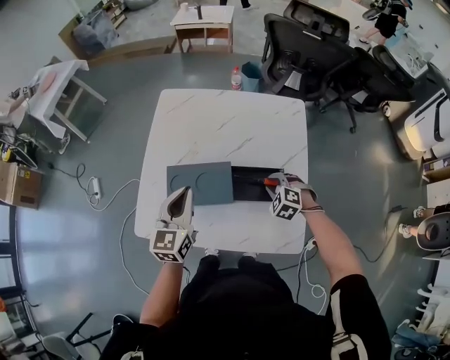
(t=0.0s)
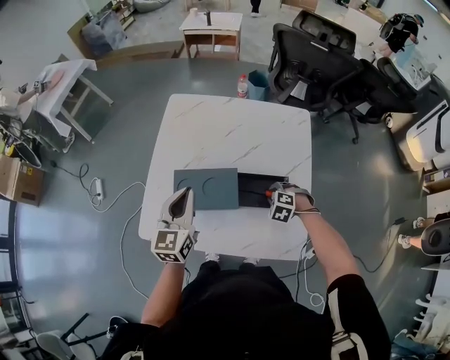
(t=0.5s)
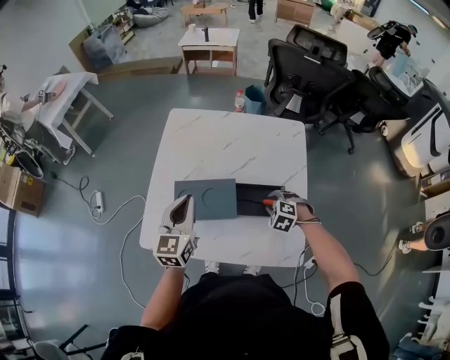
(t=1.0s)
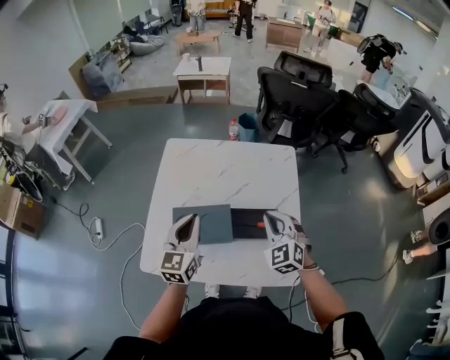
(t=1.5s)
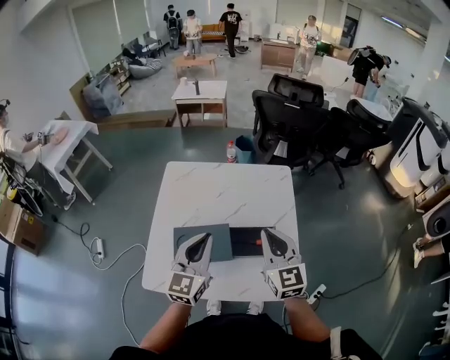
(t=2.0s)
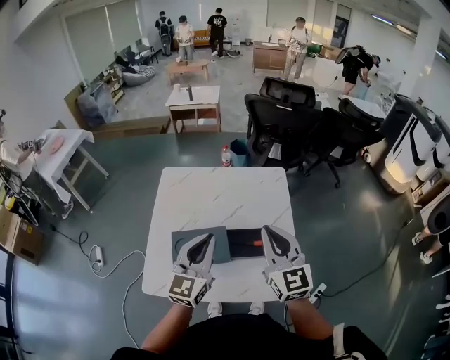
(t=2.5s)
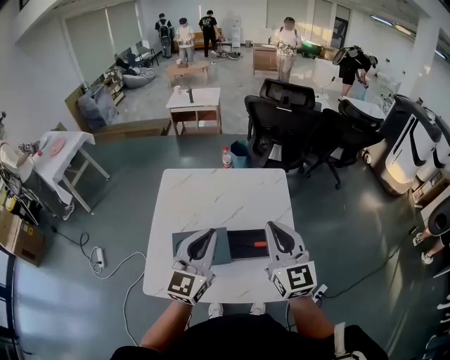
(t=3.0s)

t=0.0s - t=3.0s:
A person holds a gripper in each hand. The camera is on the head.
t=0.0s - t=1.5s: The right gripper moves upward, approximately 20 cm, tilts its fingers roughly 30 degrees upward, and closes.
t=1.5s - t=3.0s: The right gripper shifts about 15 cm upward, and changes its angle by about 40 degrees; the left gripper moves upward and to the right, about 10 cm.

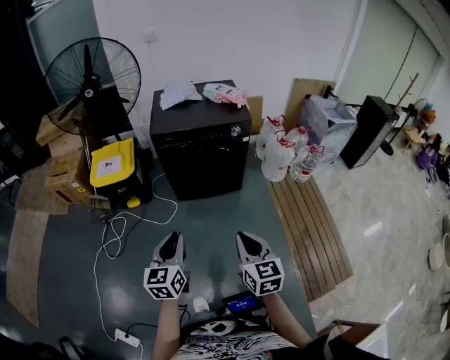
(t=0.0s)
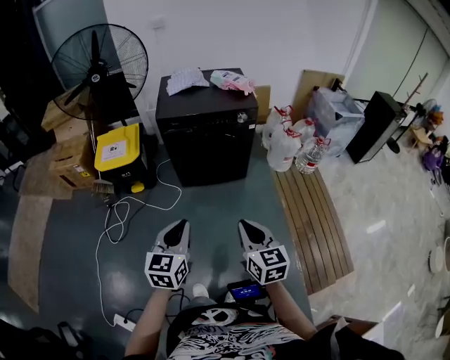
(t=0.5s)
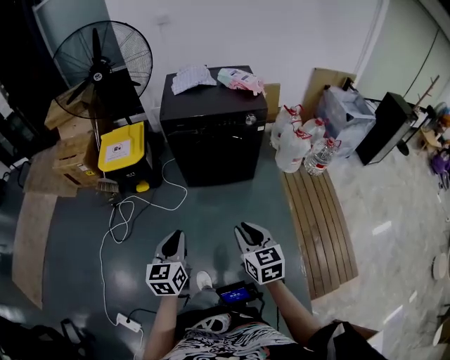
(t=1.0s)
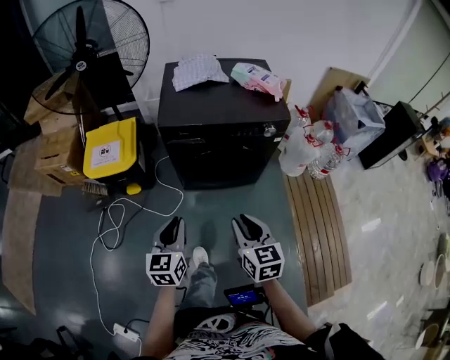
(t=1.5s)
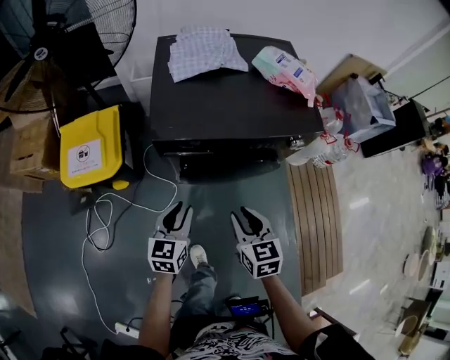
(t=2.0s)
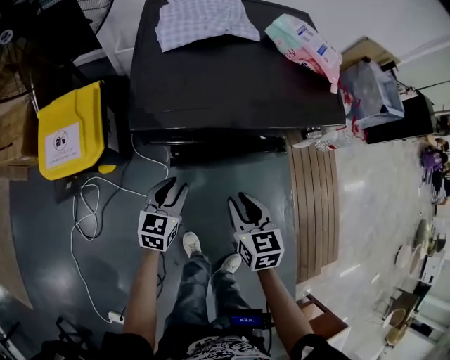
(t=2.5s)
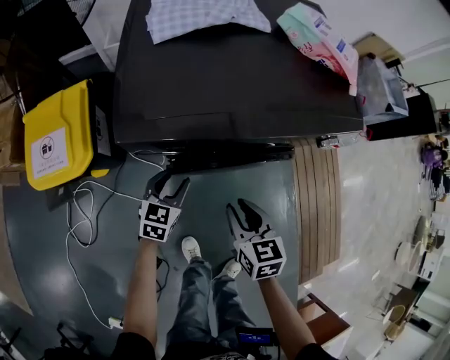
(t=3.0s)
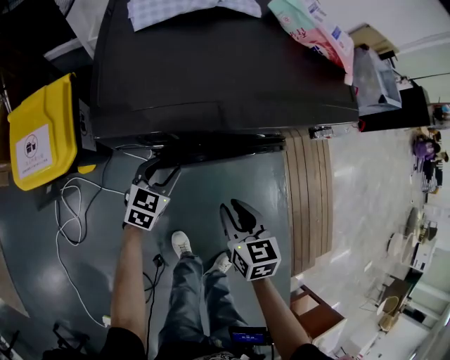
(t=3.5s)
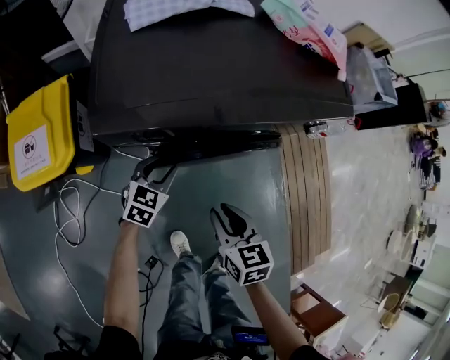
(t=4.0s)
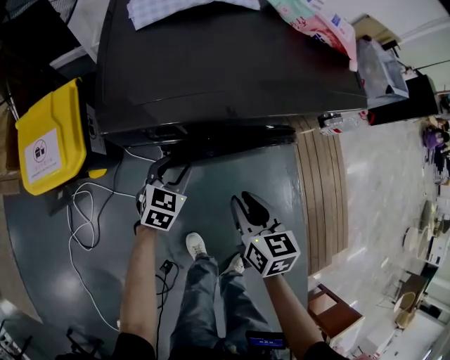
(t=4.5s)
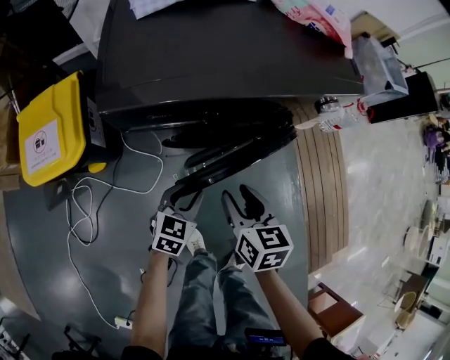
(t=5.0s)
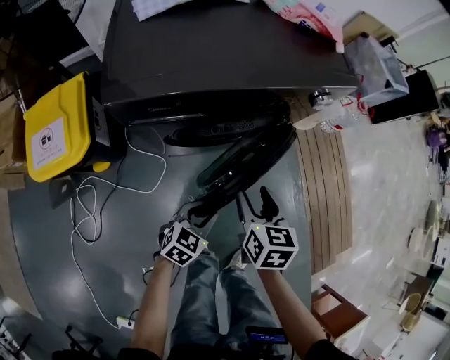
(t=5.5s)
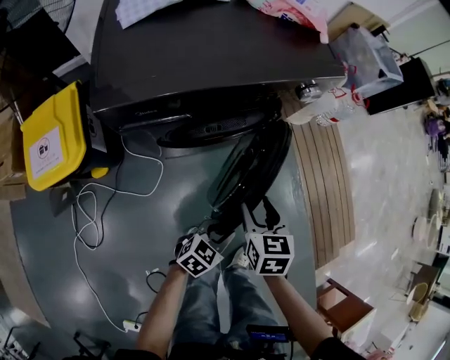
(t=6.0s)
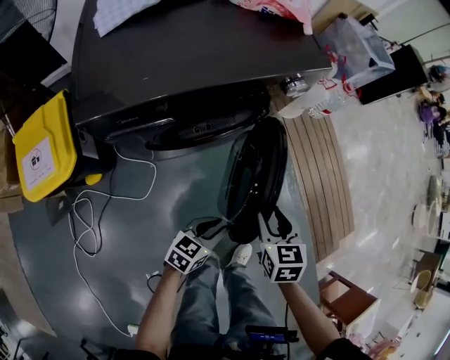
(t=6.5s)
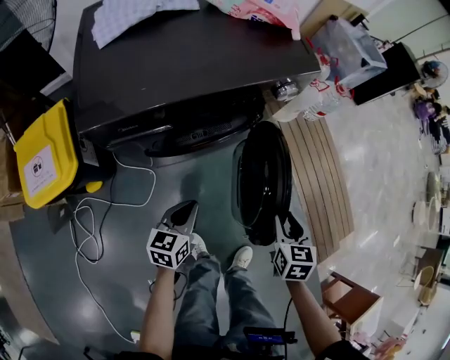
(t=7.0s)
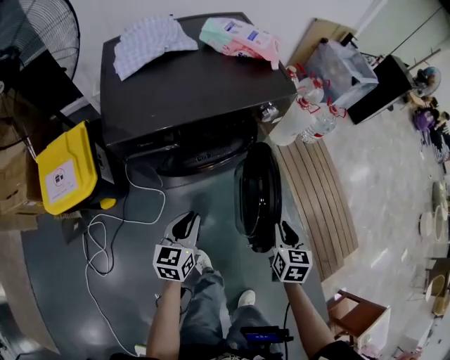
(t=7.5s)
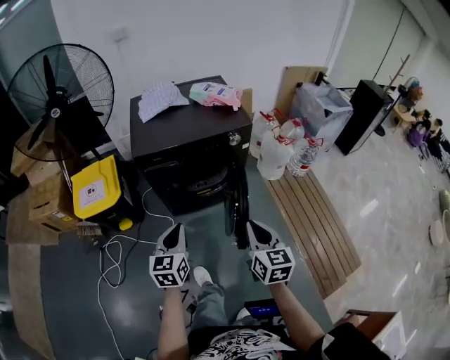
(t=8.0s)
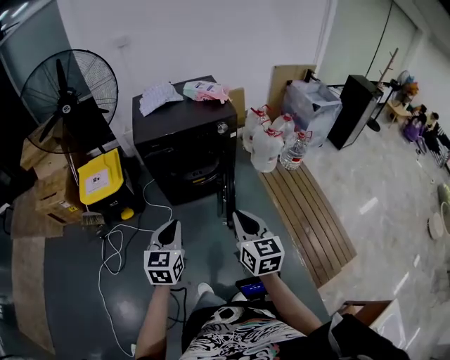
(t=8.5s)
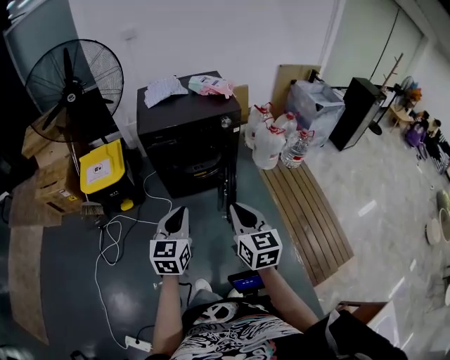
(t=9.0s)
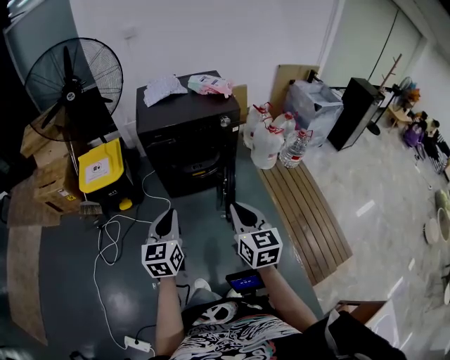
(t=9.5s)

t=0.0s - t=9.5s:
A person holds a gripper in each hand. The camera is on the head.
t=0.0s - t=2.0s: The pair of grippers is taken forward, about 40 cm. The right gripper opens its fingers. The left gripper moves downward, roughly 20 cm.
t=2.0s - t=4.0s: The right gripper is displaced downward by about 15 cm; the left gripper is displaced downward and forward by approximately 25 cm, and turns by about 30 degrees.
t=4.0s - t=5.5s: The left gripper moves backward and to the right, roughly 20 cm; the right gripper travels to the right by some 5 cm, and opens up.
t=5.5s - t=7.5s: The left gripper travels upward by about 10 cm, moves about 10 cm to the right and comes back, and turns by about 30 degrees. The right gripper moves to the right, approximately 20 cm, and closes its fingers.
t=7.5s - t=9.5s: The left gripper shifts approximately 40 cm backward and upward, and swivels approximately 20 degrees. The right gripper goes roughly 40 cm upward and backward, and turns by approximately 40 degrees.

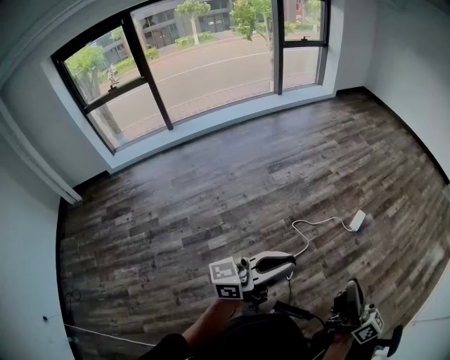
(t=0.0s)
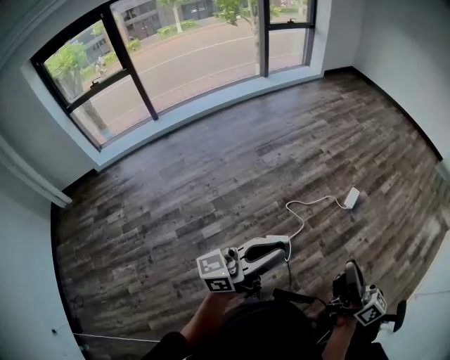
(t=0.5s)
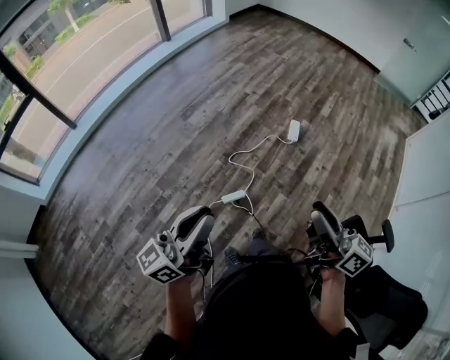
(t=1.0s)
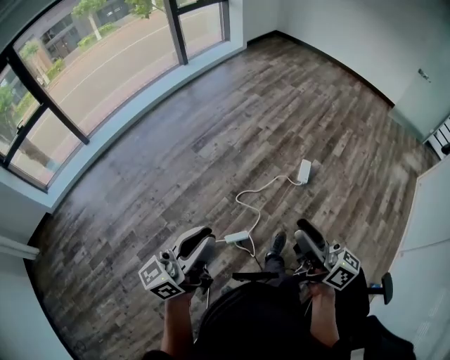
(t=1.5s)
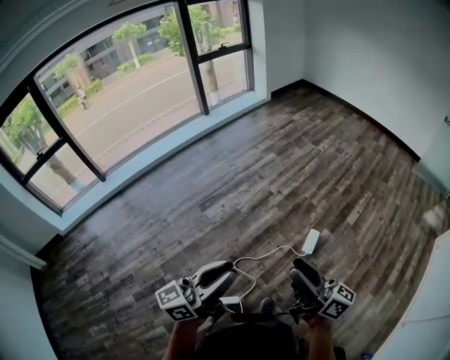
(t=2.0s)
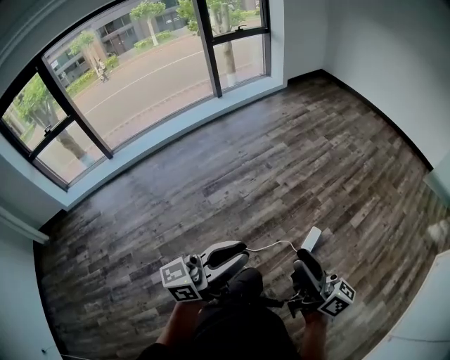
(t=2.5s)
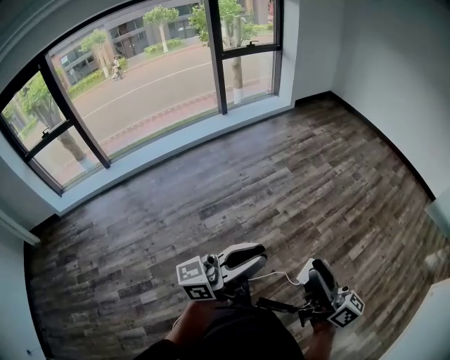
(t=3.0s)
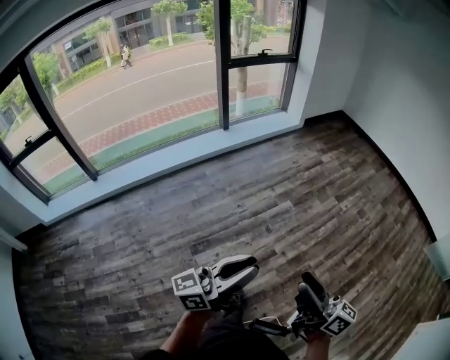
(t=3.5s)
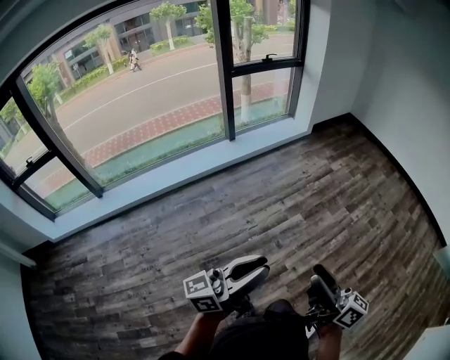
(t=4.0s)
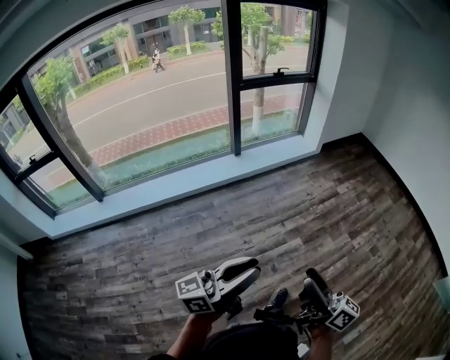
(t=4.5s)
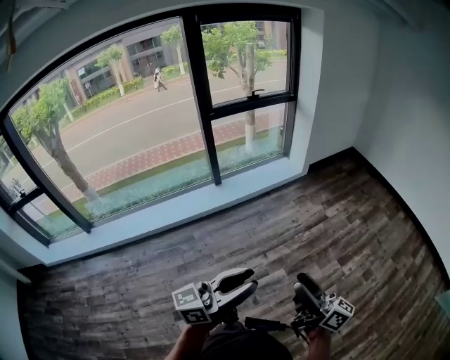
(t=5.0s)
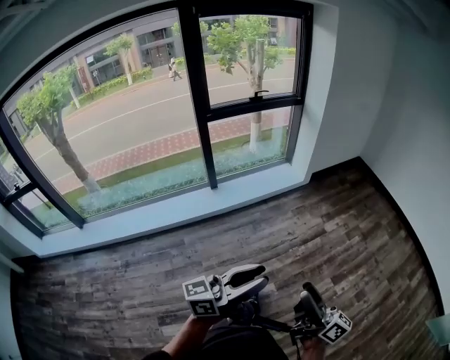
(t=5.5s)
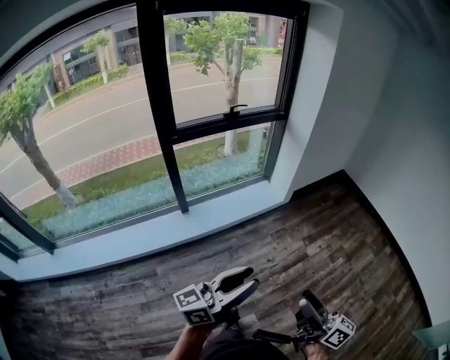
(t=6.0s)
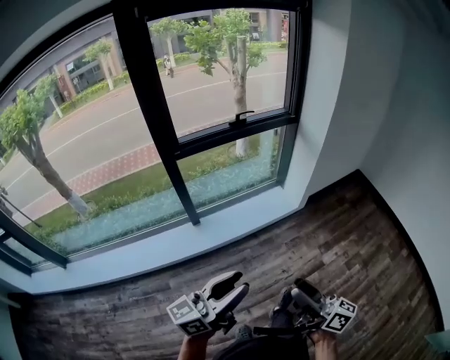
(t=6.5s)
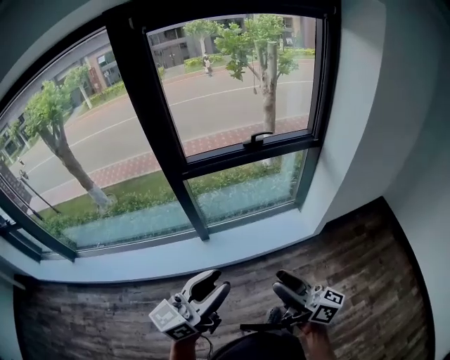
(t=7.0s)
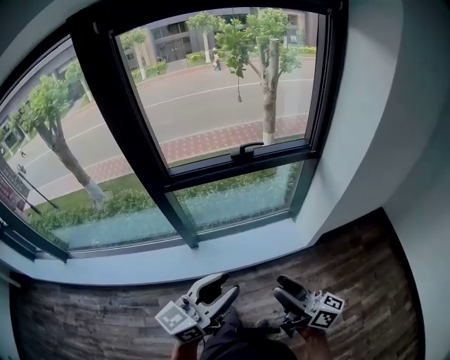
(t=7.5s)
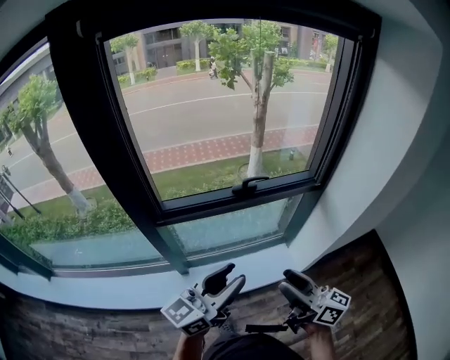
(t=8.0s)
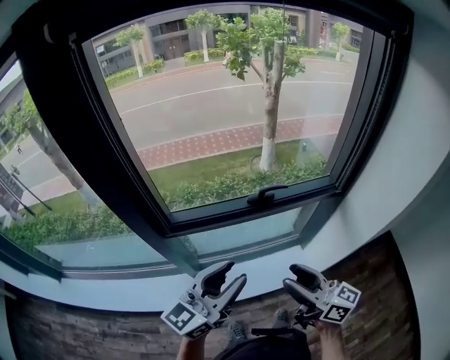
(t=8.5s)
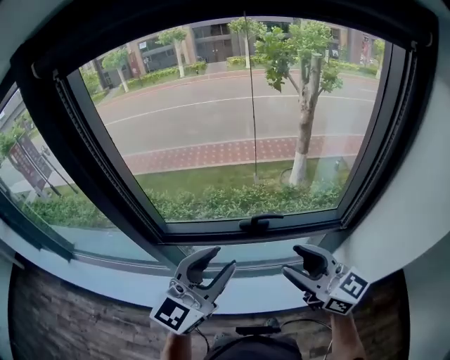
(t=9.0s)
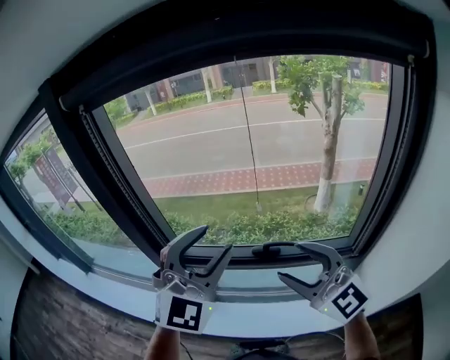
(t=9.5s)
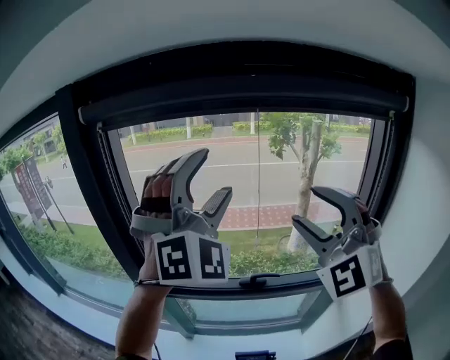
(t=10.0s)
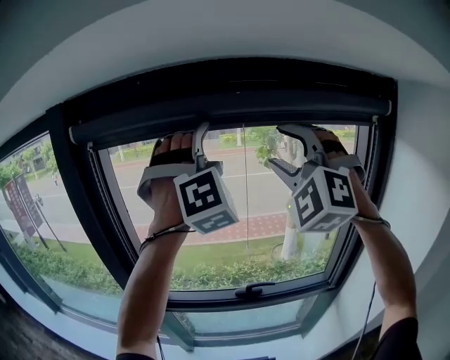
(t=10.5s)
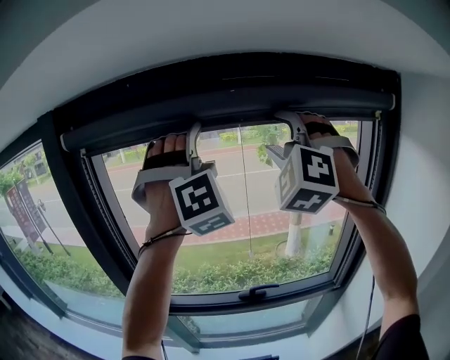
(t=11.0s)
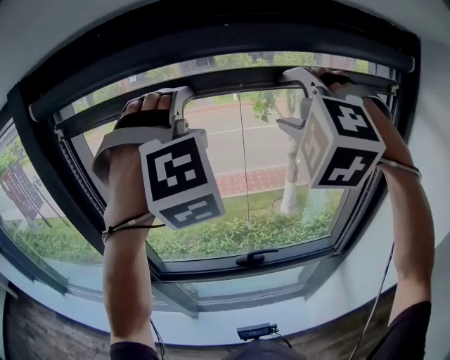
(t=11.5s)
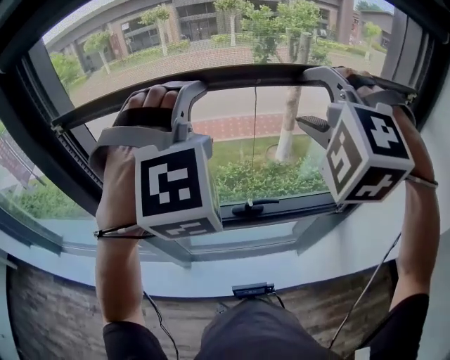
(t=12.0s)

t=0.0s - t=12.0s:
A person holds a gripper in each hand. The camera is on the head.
t=0.0s - t=2.0s: Both grippers travel together forward, about 35 cm. The right gripper opens.
t=2.0s - t=4.0s: The pair of grippers is taken forward, about 60 cm.
t=4.0s - t=6.0s: The two grippers travel together, forward, roughly 70 cm.
t=6.0s - t=8.0s: Both grippers are carried forward, roughly 60 cm. The left gripper changes its angle by about 30 degrees, while the right gripper rotates roughly 20 degrees.
t=8.0s - t=10.0s: Both grippers move upward, approximately 35 cm. The left gripper twists about 100 degrees clockwise, seen from behind, and opens its fingers, while the right gripper rolls counterclockwise, seen from behind, by about 110 degrees.
t=10.0s - t=12.0s: The right gripper shifts about 10 cm forward, moves roughly 15 cm upward and comes back, and points its fingers about 30 degrees further downward. Meanwhile the left gripper is displaced downward and forward by roughly 15 cm, and angles its fingers downward, by about 30 degrees.

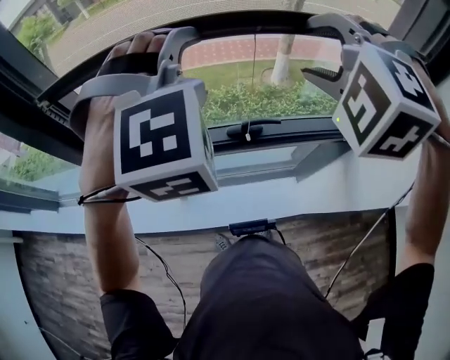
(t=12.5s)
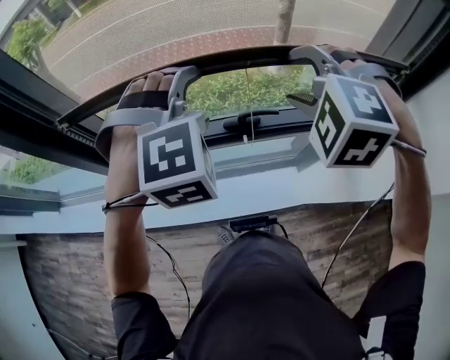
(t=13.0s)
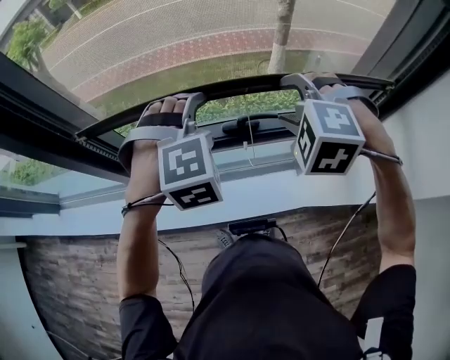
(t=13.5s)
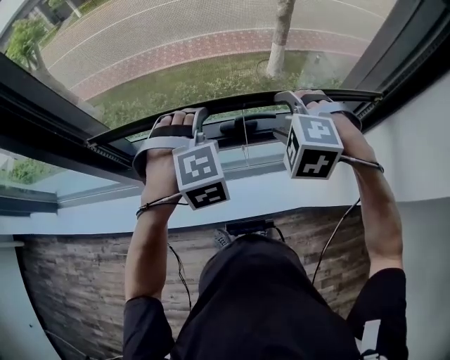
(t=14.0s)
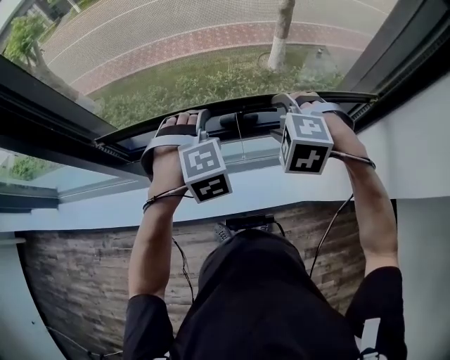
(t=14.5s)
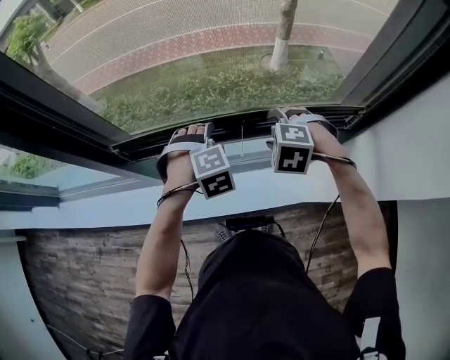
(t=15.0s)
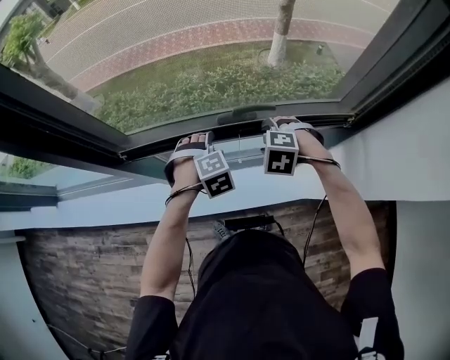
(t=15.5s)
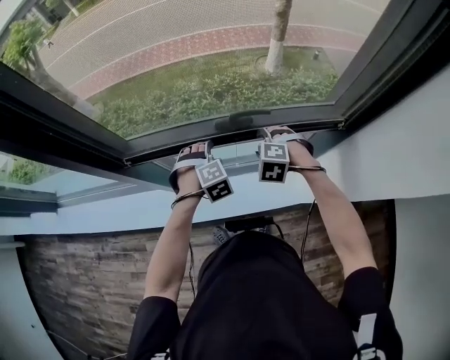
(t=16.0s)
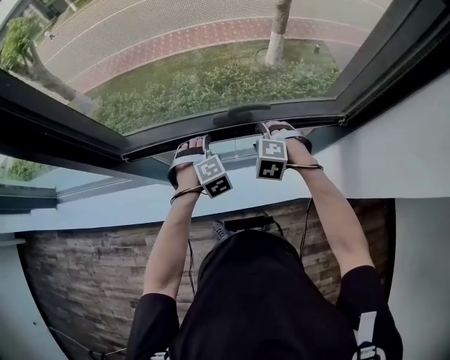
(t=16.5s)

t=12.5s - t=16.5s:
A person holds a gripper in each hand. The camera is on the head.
t=12.5s - t=14.5s: The two grippers go approximately 25 cm downward. The left gripper swivels about 20 degrees, while the right gripper turns by roughly 20 degrees.
t=14.5s - t=16.5s: Both grippers travel together downward, about 15 cm.
